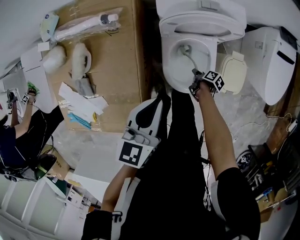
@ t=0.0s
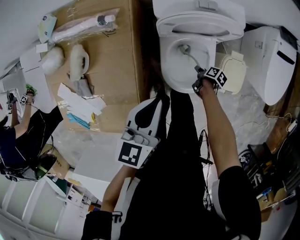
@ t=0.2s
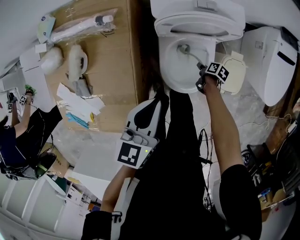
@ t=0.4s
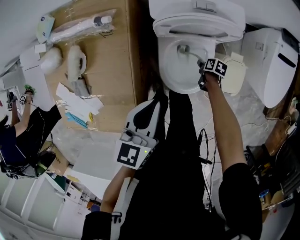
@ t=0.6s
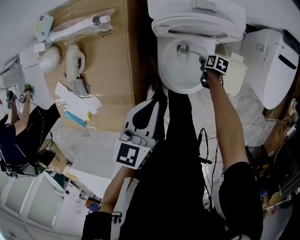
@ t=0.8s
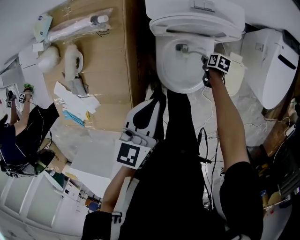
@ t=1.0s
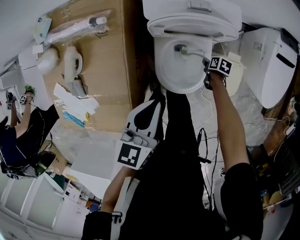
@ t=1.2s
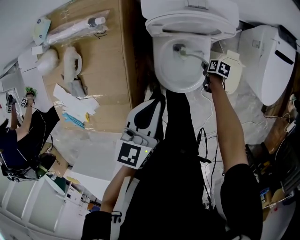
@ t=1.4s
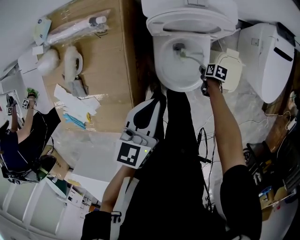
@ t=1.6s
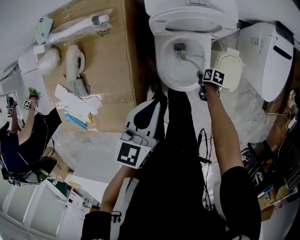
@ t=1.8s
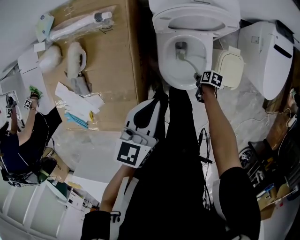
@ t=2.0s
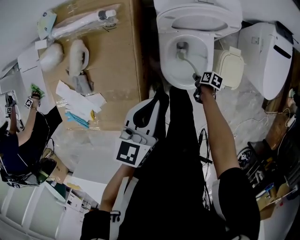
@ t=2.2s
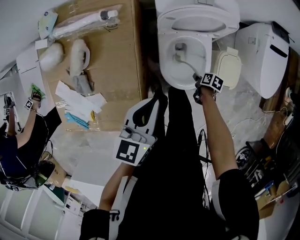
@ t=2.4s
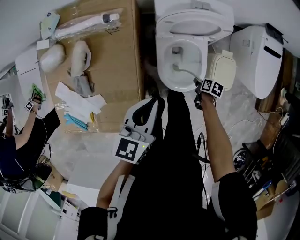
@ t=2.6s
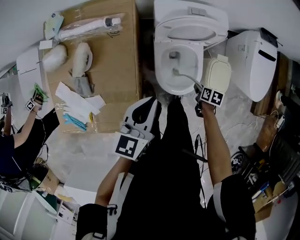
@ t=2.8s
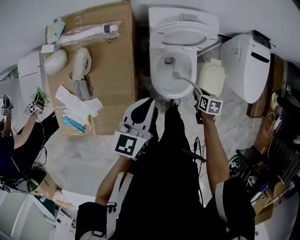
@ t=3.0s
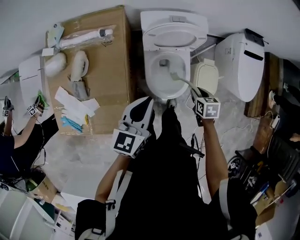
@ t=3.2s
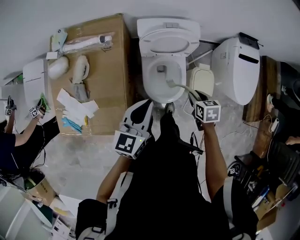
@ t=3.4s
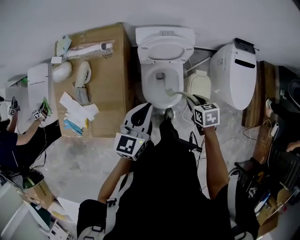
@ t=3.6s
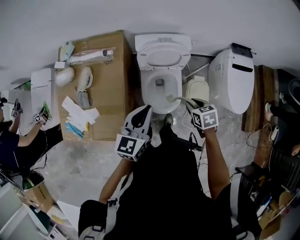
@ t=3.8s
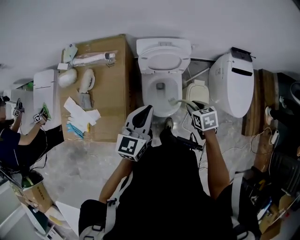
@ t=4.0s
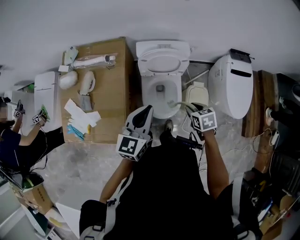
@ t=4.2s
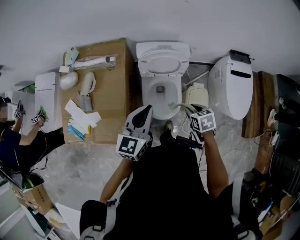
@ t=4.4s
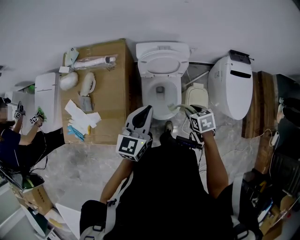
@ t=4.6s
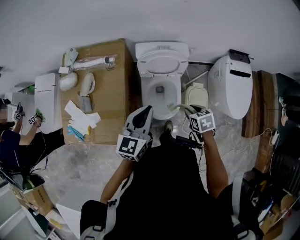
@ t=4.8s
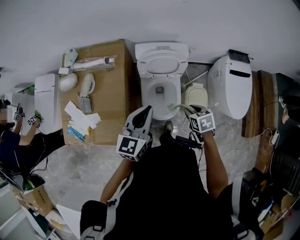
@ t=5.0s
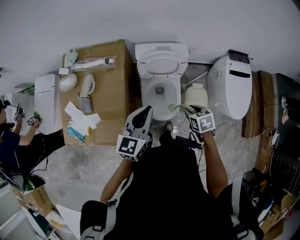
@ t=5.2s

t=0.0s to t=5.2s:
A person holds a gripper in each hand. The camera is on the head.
t=0.0s to t=1.8s: The right gripper shifts approximately 5 cm to the right, and rotates roughly 40 degrees.
t=1.8s to t=3.4s: The right gripper is displaced upward by some 35 cm, and turns by some 40 degrees. Meanwhile the left gripper moves upward and backward, approximately 15 cm.
t=3.4s to t=5.2s: The two grippers go about 5 cm upward.

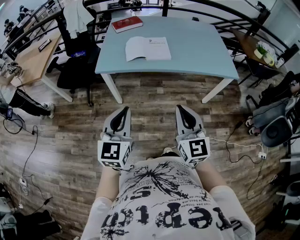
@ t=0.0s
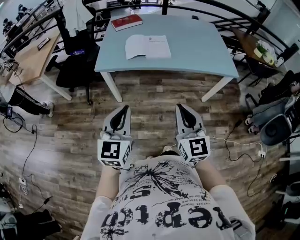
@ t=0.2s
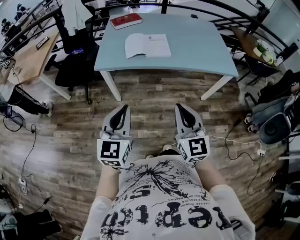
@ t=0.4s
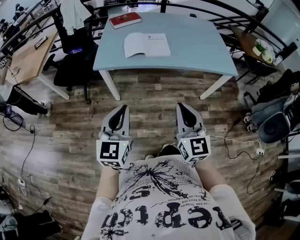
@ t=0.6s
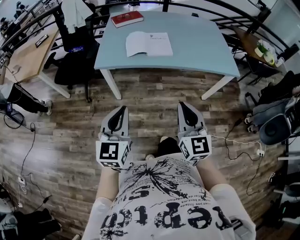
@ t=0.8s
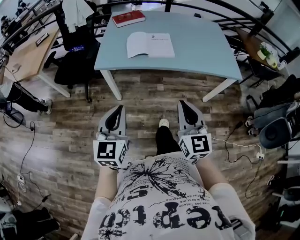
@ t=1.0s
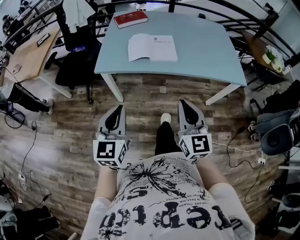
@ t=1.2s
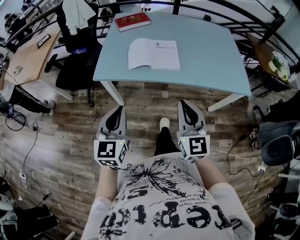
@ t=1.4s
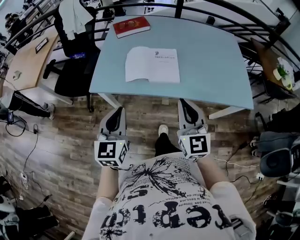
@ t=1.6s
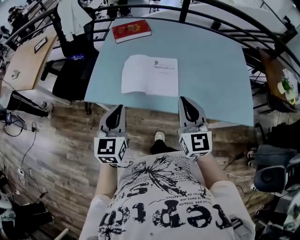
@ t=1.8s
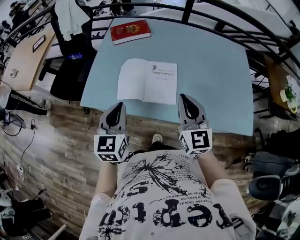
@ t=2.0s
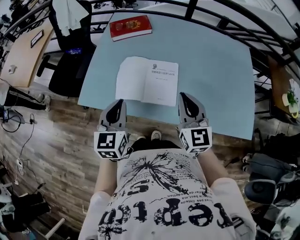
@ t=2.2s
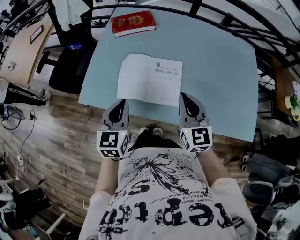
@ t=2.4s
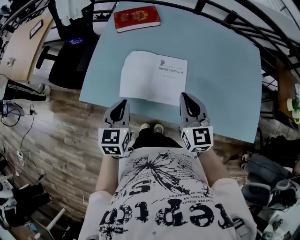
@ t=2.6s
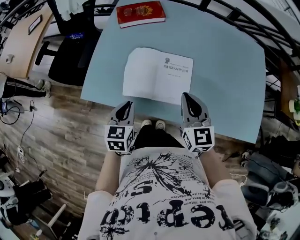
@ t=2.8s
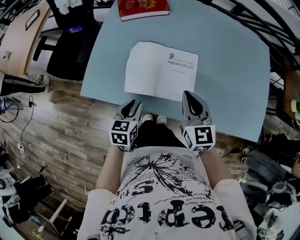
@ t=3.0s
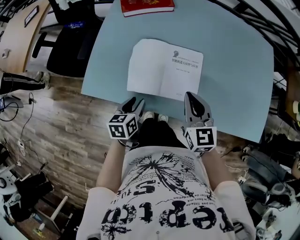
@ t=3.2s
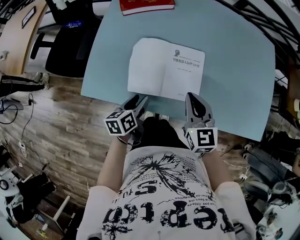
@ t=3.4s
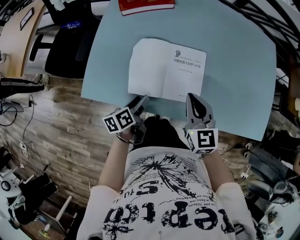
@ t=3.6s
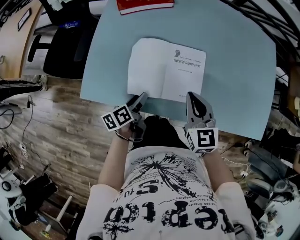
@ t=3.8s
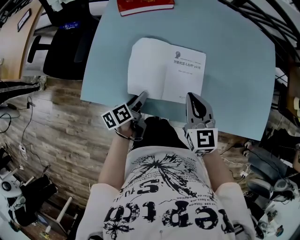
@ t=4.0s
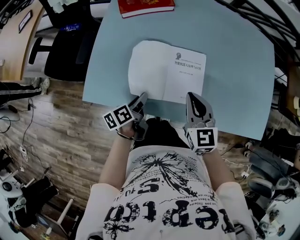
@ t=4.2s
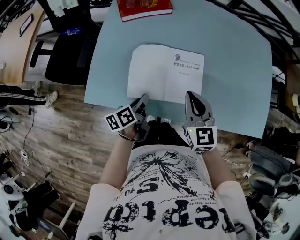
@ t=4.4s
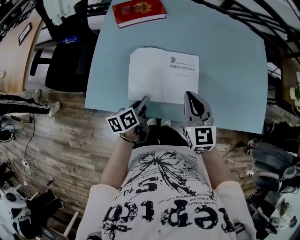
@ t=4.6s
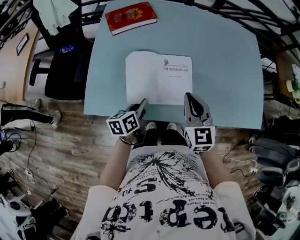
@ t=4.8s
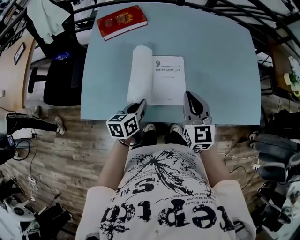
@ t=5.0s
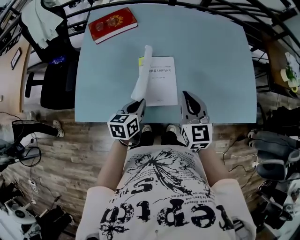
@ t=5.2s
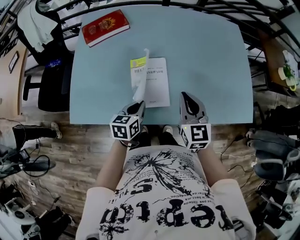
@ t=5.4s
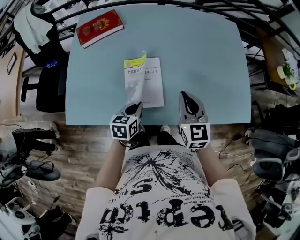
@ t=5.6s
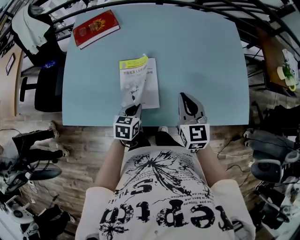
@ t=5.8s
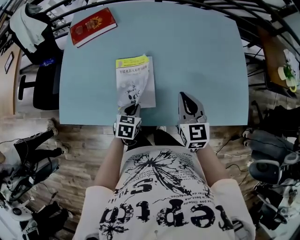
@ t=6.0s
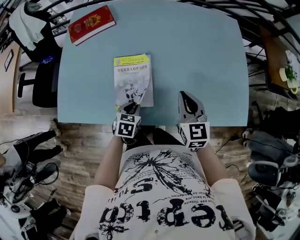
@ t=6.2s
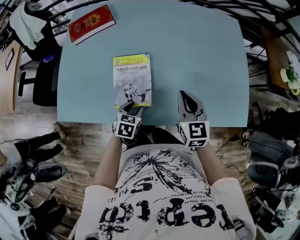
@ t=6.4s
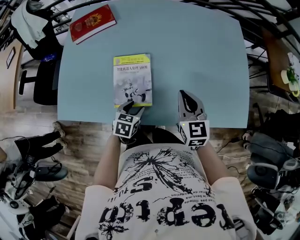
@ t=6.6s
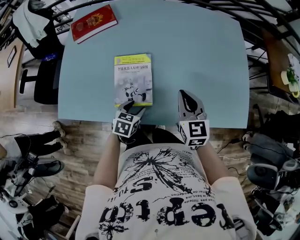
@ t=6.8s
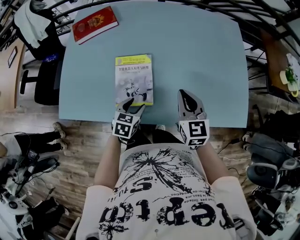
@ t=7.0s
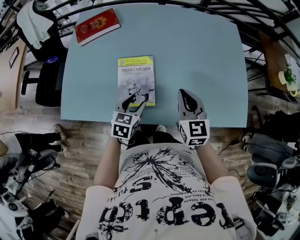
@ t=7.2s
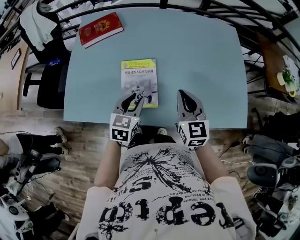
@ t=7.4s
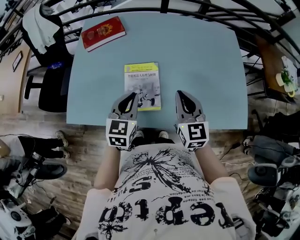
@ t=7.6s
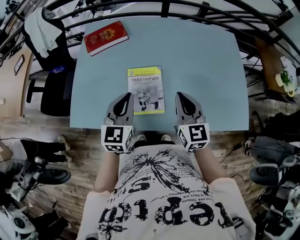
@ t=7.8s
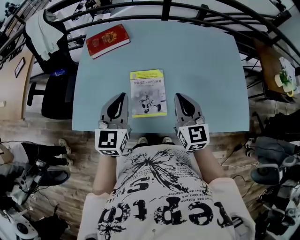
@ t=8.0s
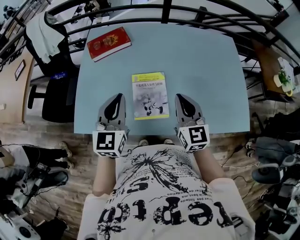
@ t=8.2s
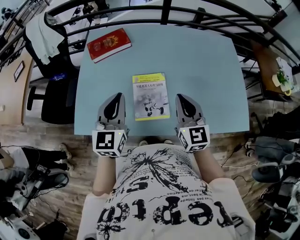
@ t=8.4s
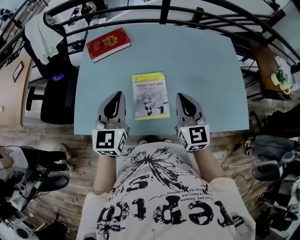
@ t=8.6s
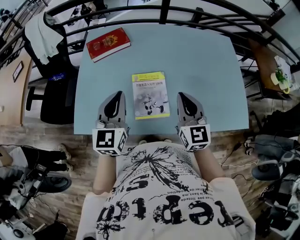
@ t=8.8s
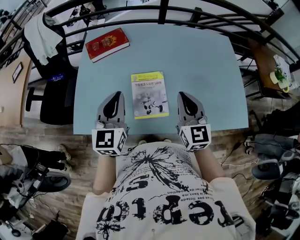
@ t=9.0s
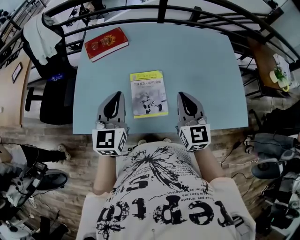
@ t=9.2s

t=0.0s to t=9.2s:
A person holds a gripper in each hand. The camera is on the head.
t=0.0s to t=1.6s: The grippers both shift forward by approximately 25 cm.
t=1.6s to t=3.0s: Both grippers move forward and downward, some 25 cm. The right gripper rotates approximately 20 degrees; the left gripper changes its angle by some 30 degrees, and opens up.
t=3.0s to t=4.6s: The left gripper changes its angle by approximately 40 degrees, and closes.
t=4.6s to t=6.2s: The two grippers go approximately 20 cm to the right. The left gripper twists approximately 50 degrees clockwise, seen from behind.
t=6.2s to t=7.6s: The right gripper goes roughly 10 cm upward and to the left. Meanwhile the left gripper moves upward, about 20 cm, changes its angle by roughly 30 degrees, and opens, then closes once more.
t=7.6s to t=9.2s: The right gripper moves about 5 cm, while the left gripper moves upward and to the left, some 15 cm.

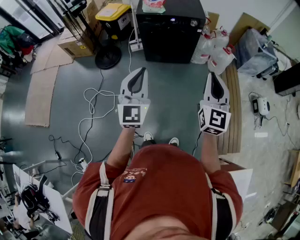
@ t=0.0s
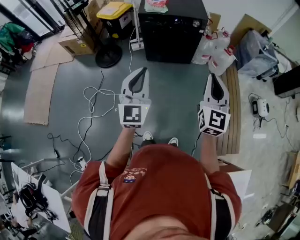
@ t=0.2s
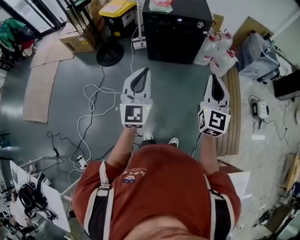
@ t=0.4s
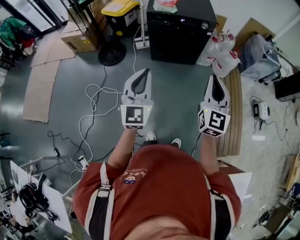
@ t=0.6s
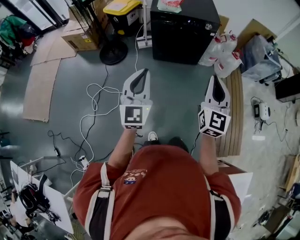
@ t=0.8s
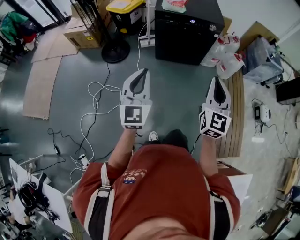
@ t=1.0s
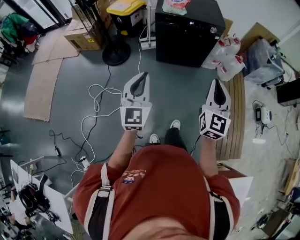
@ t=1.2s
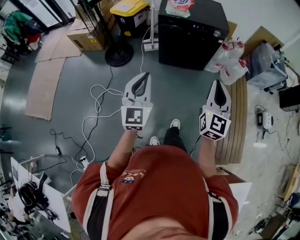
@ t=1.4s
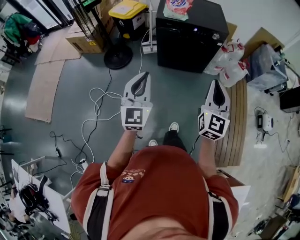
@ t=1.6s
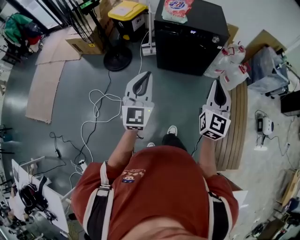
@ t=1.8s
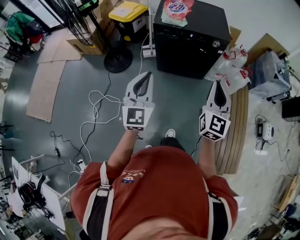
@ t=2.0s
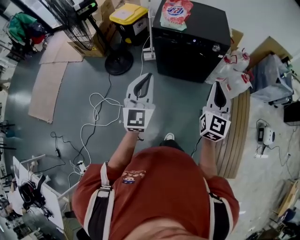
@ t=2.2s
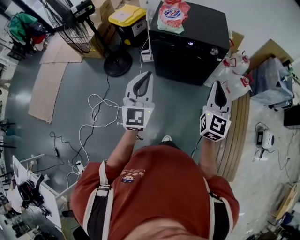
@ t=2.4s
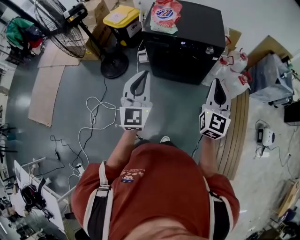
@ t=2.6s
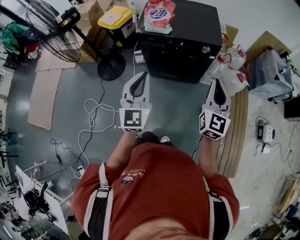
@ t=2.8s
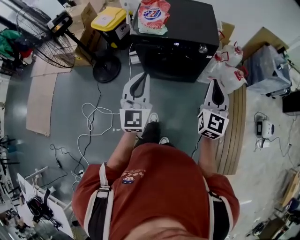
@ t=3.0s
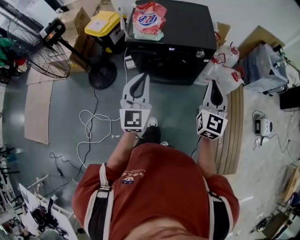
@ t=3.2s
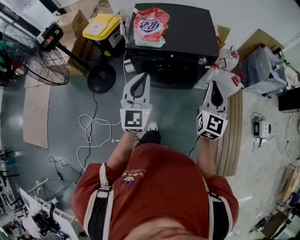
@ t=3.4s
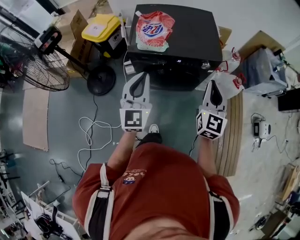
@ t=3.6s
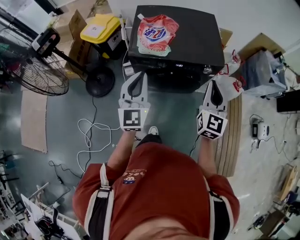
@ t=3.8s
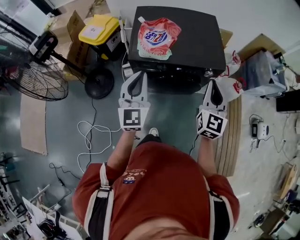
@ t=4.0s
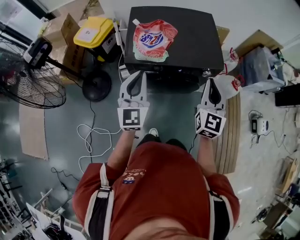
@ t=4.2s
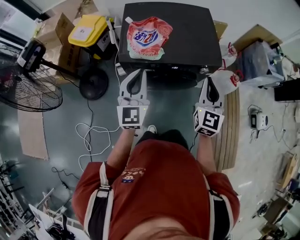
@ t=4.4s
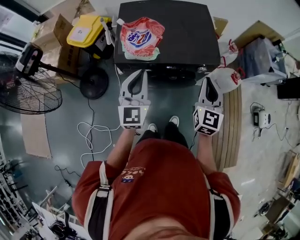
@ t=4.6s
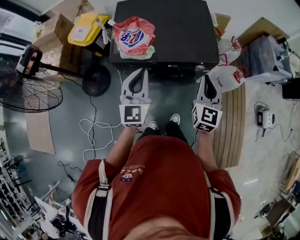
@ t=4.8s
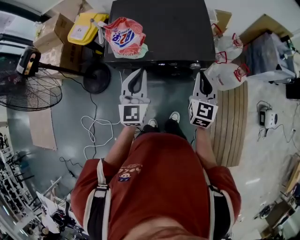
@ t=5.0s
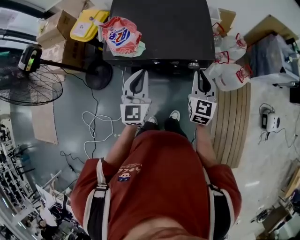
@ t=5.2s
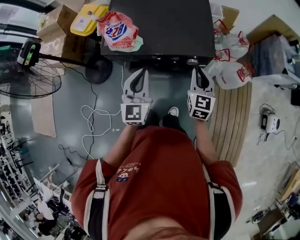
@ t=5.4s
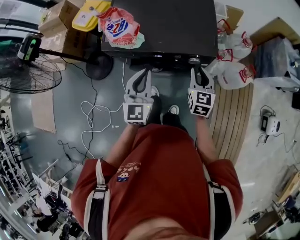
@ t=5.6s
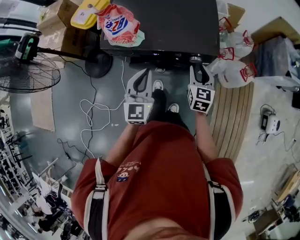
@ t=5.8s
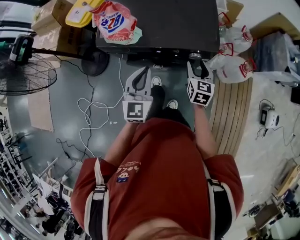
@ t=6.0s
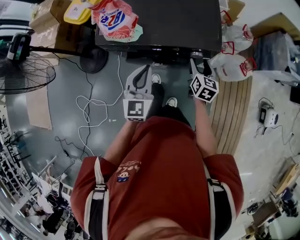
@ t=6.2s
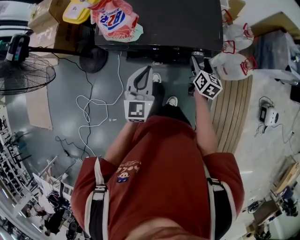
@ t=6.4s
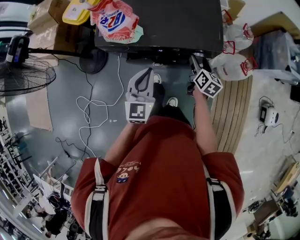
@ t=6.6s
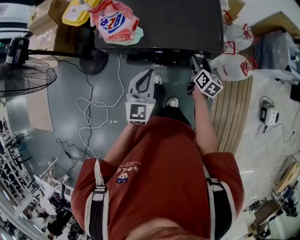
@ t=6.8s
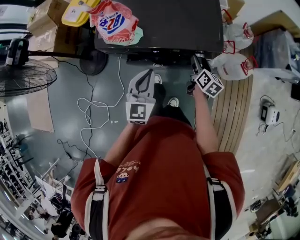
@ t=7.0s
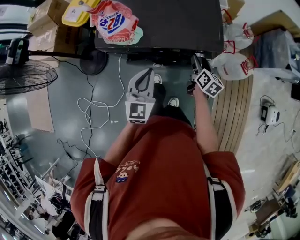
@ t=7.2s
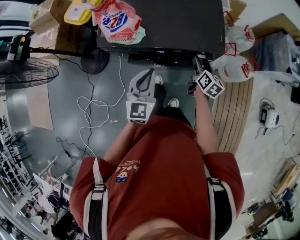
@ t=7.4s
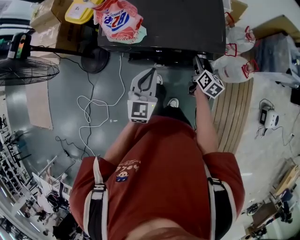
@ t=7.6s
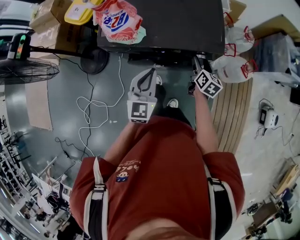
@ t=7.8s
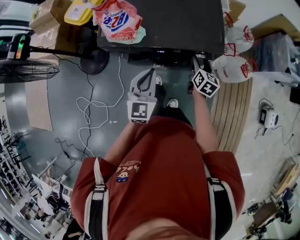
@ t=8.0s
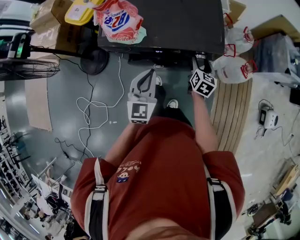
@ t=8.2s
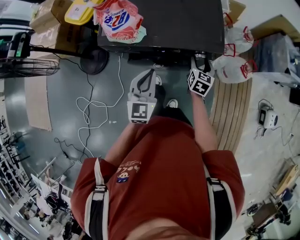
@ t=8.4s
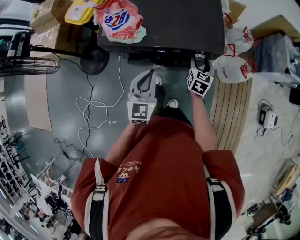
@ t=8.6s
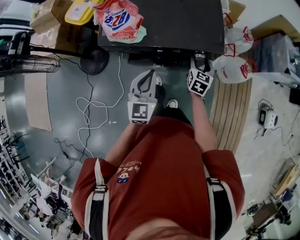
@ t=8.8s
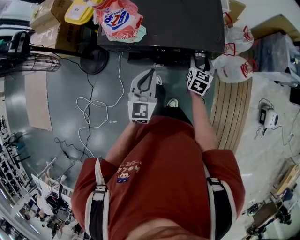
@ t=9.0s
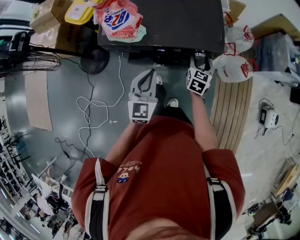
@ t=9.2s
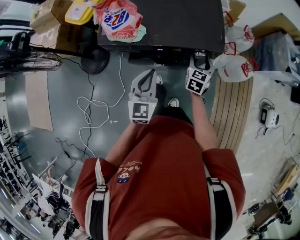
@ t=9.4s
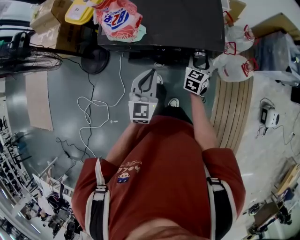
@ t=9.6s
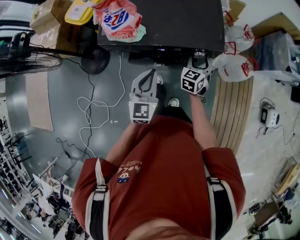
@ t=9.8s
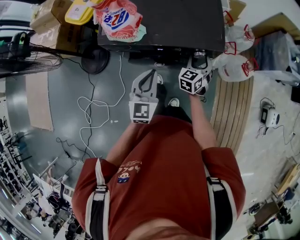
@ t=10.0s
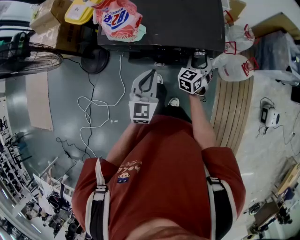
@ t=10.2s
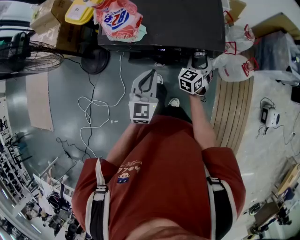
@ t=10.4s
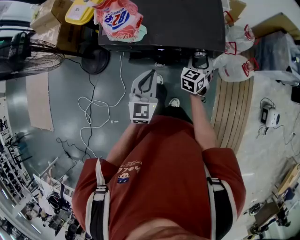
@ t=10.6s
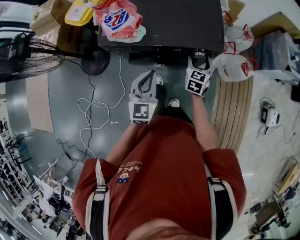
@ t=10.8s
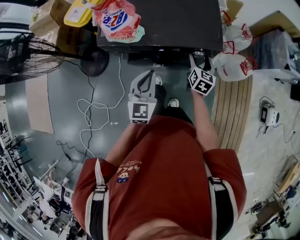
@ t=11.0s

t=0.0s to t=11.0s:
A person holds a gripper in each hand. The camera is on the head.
t=0.0s to t=1.6s: The left gripper heads to the left and forward, covering some 15 cm; the right gripper goes approximately 15 cm forward and to the left.
t=1.6s to t=3.2s: The two grippers go roughly 35 cm forward.
t=3.2s to t=4.8s: The grippers both shift forward by roughly 25 cm.
t=4.8s to t=6.2s: The left gripper shifts approximately 15 cm downward and to the right. Meanwhile the right gripper travels downward by some 20 cm, swivels some 30 degrees, and opens.
t=6.2s to t=7.8s: The grippers make only small movements.
t=7.8s to t=9.4s: The right gripper rotates some 30 degrees.
